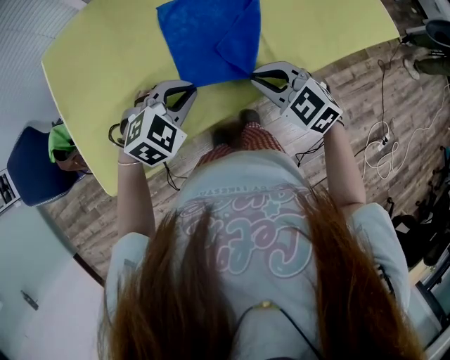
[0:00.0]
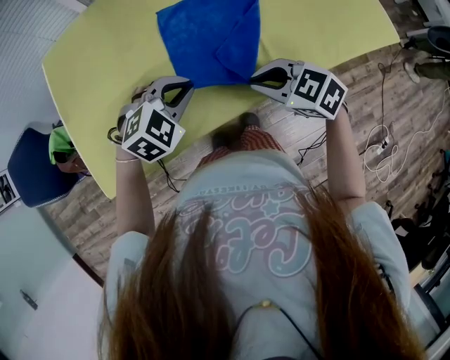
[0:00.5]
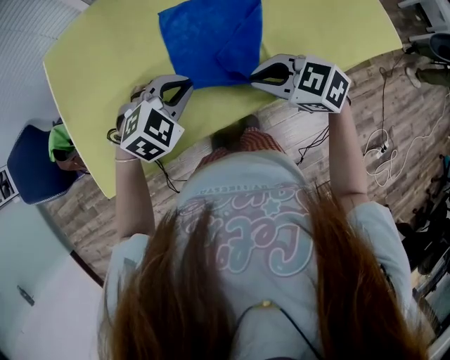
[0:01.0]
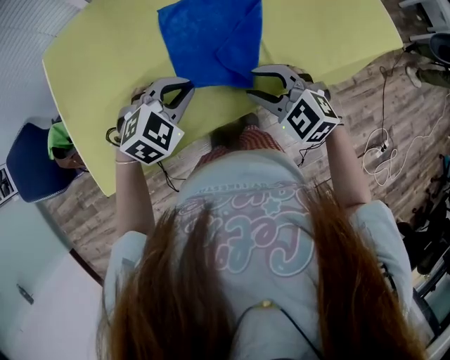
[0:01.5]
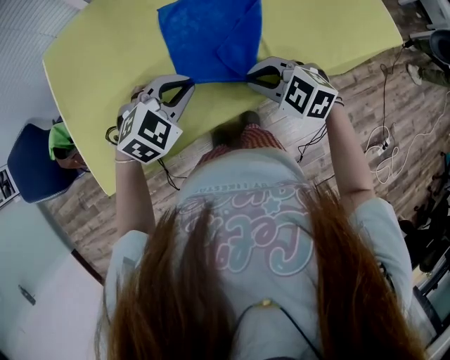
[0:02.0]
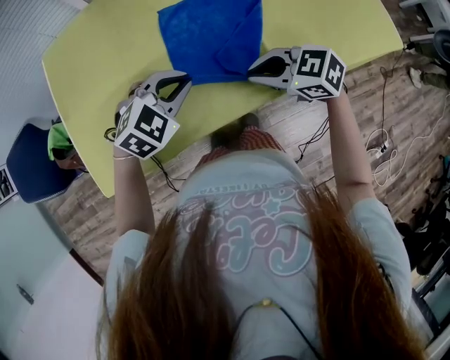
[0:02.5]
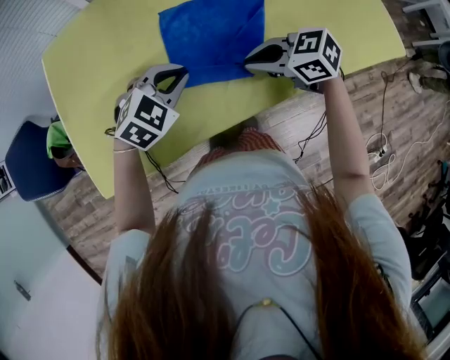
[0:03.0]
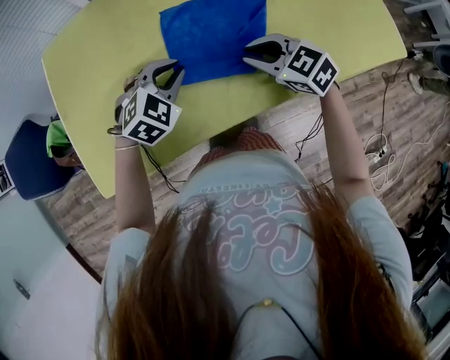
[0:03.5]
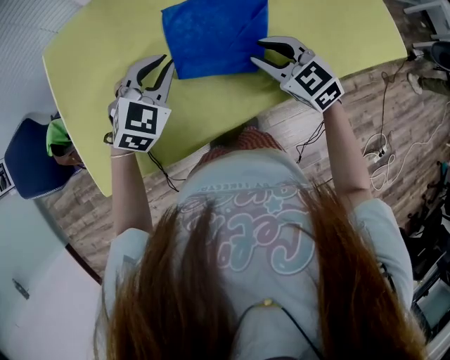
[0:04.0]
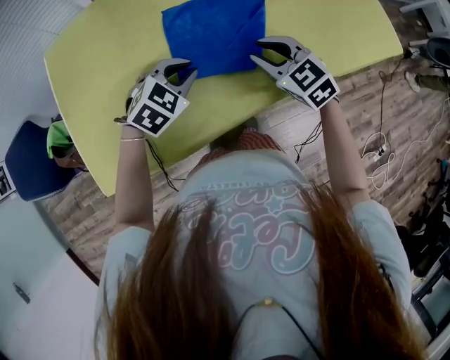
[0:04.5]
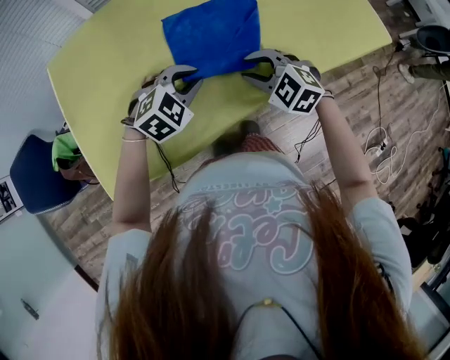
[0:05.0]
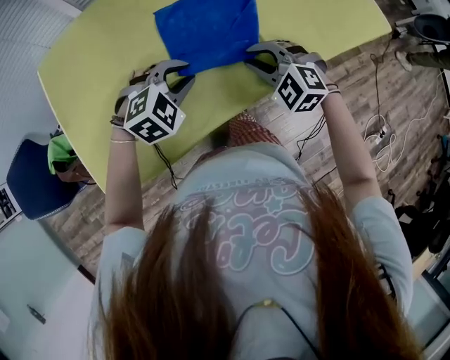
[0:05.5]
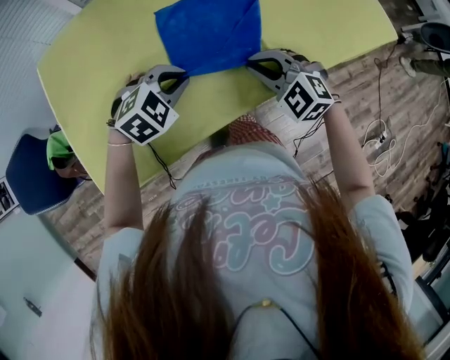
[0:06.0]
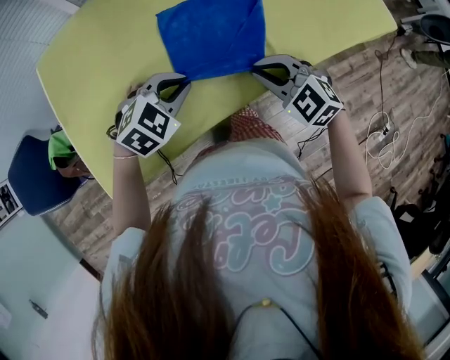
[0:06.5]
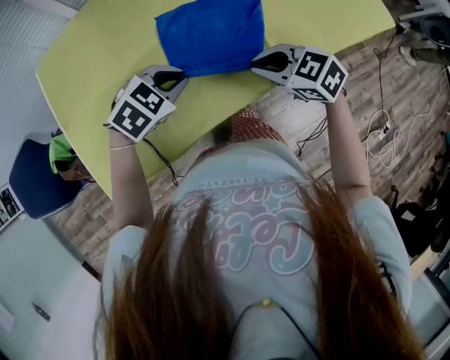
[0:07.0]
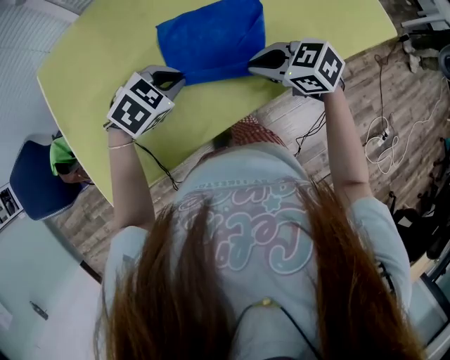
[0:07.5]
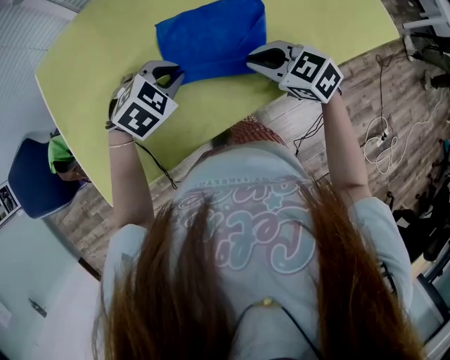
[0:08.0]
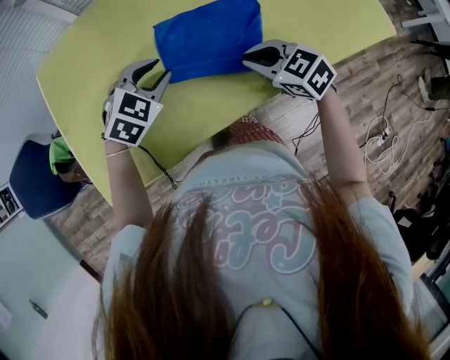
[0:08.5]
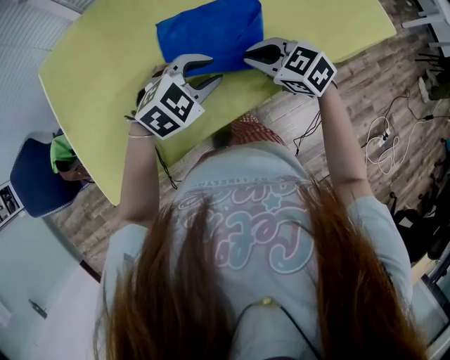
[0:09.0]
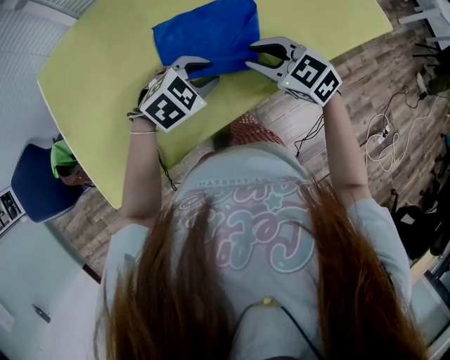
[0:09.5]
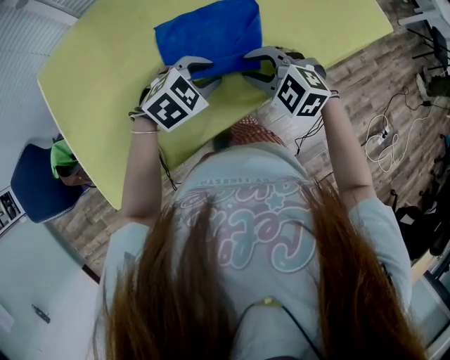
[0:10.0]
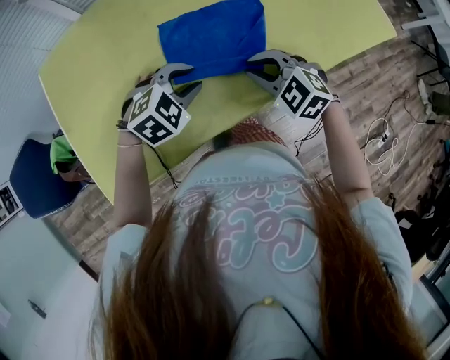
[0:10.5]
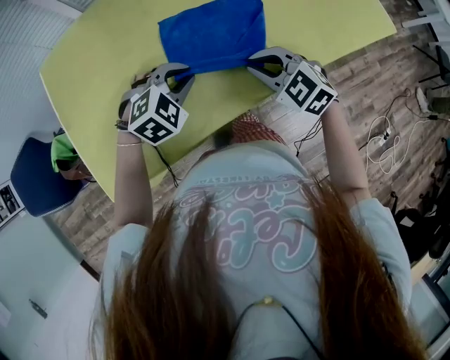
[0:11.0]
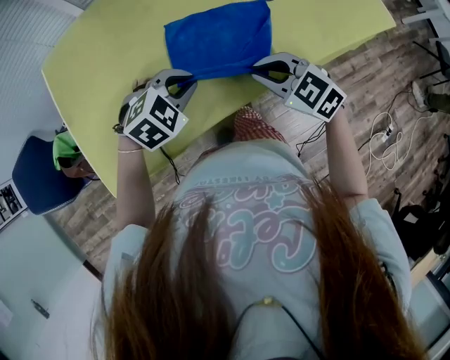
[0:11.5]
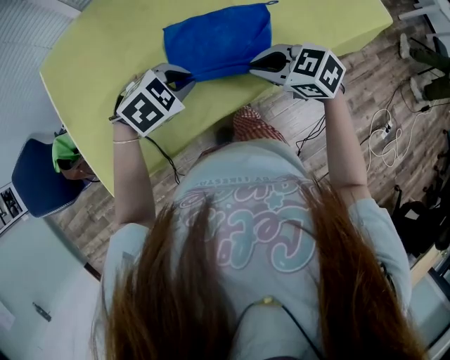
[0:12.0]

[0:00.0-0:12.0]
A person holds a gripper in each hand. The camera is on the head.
0:00.0 to 0:02.0: The right gripper opens and closes again.
0:02.0 to 0:04.0: The right gripper changes place by roughly 10 cm, swivels roughly 20 degrees, and opens its fingers. Meanwhile the left gripper ends up about 10 cm from where it was, and changes its angle by approximately 20 degrees.
0:04.0 to 0:06.0: The right gripper ends up about 5 cm from where it was, changes its angle by some 20 degrees, and closes its fingers, while the left gripper moves downward, some 5 cm, and changes its angle by approximately 30 degrees.
0:06.0 to 0:08.0: The right gripper changes its angle by about 30 degrees.
0:08.0 to 0:10.0: The right gripper turns by roughly 30 degrees, and opens. Meanwhile the left gripper goes roughly 10 cm to the right, and opens its fingers.
0:10.0 to 0:12.0: The right gripper rotates roughly 30 degrees, and closes its fingers, while the left gripper changes place by about 10 cm, and closes its fingers.

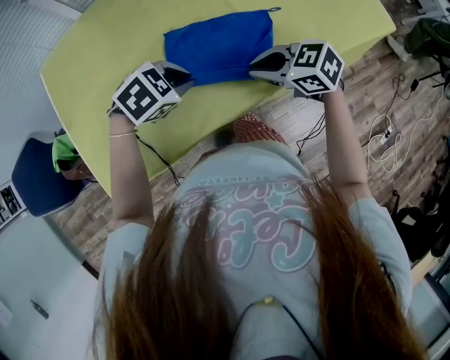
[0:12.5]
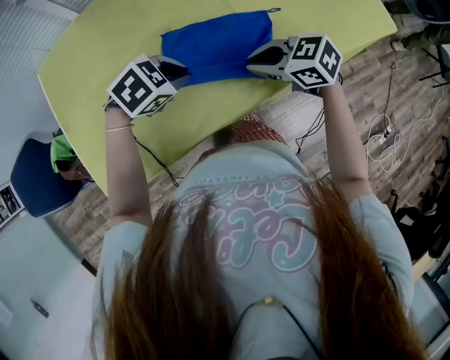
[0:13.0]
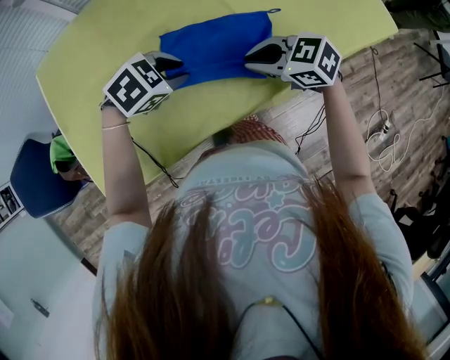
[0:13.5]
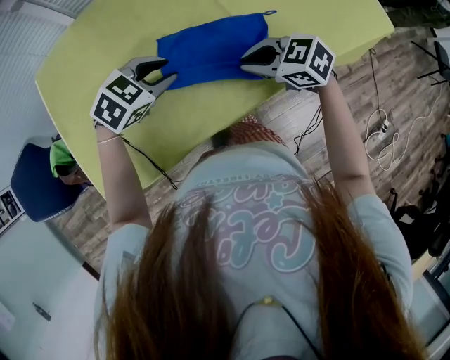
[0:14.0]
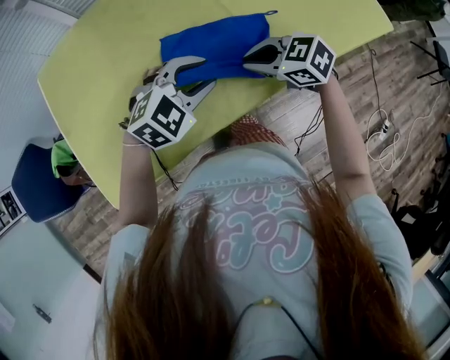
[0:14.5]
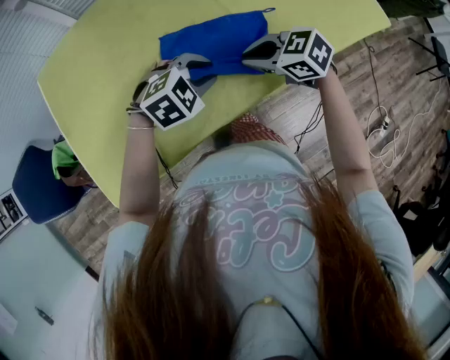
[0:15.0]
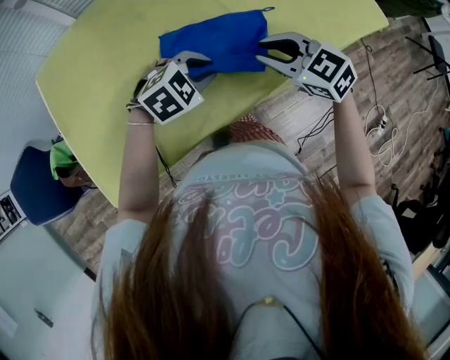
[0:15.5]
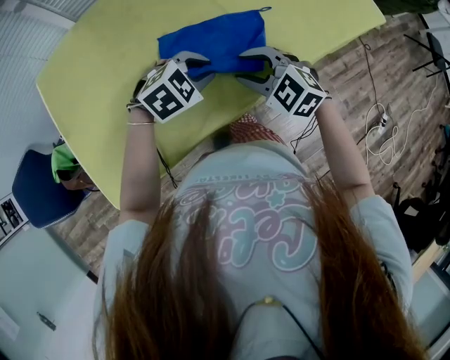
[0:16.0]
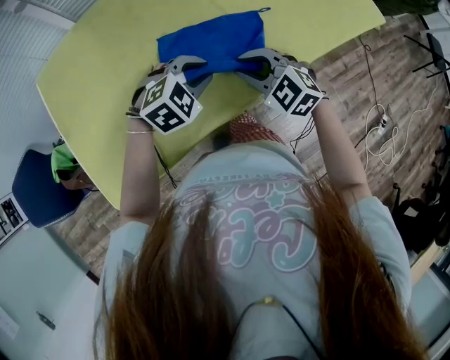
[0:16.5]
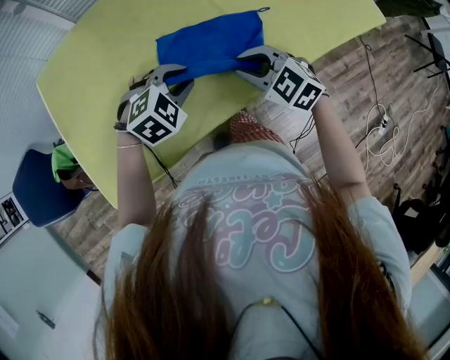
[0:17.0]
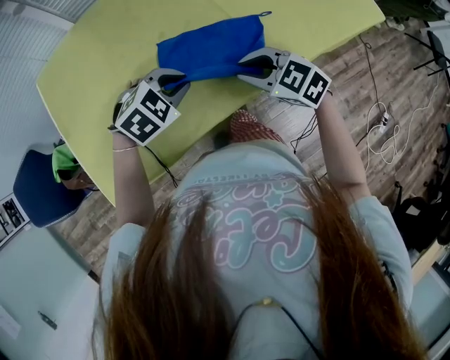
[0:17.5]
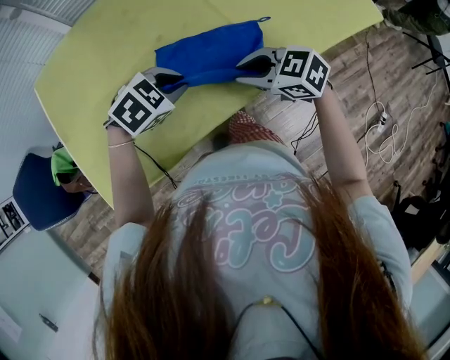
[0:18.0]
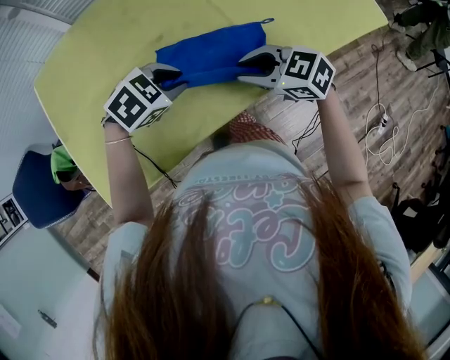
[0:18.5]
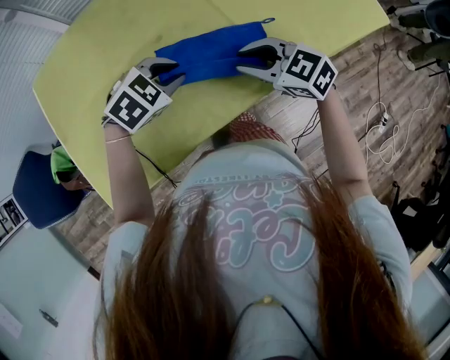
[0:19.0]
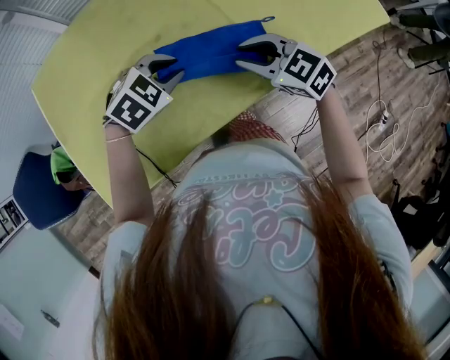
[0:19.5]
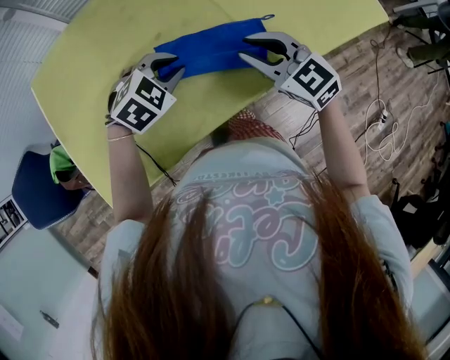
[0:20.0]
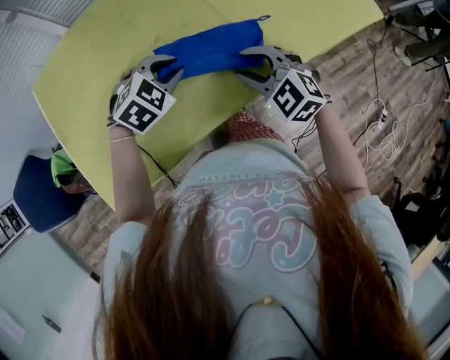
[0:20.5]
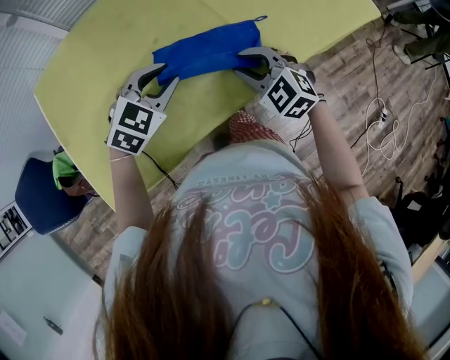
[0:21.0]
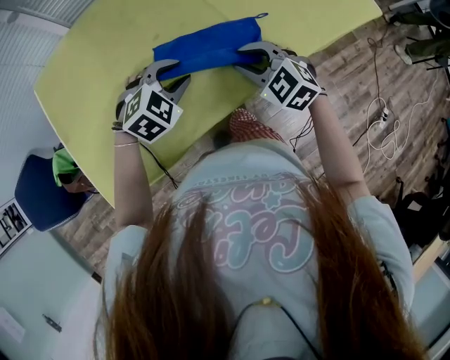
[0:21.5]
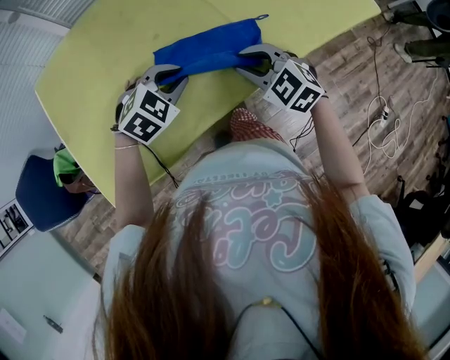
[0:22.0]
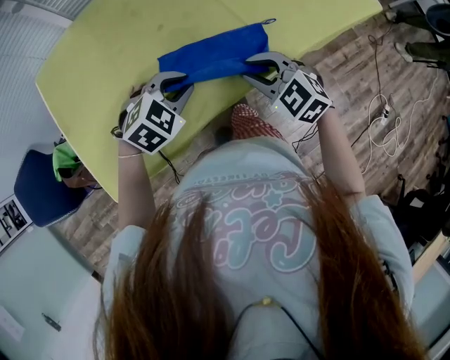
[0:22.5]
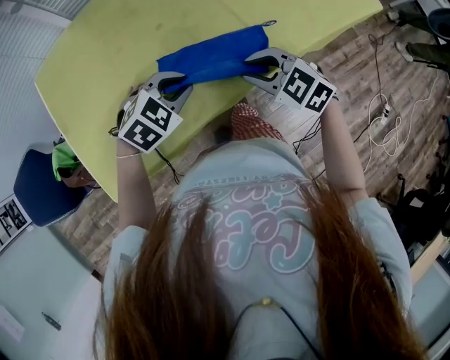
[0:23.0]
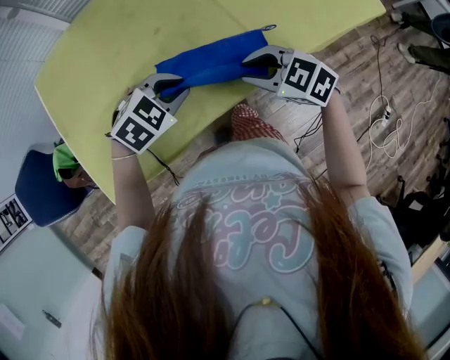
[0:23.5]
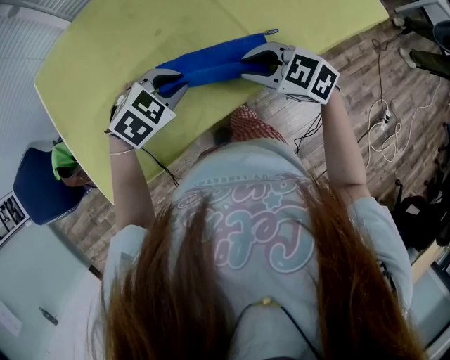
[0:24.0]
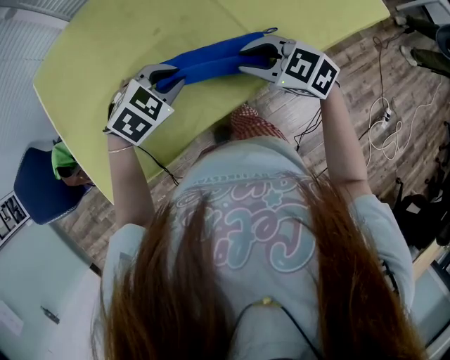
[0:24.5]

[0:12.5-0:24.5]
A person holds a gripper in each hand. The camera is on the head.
0:12.5 to 0:14.5: The left gripper shifts by some 5 cm, turns by some 30 degrees, and opens.
0:14.5 to 0:16.5: The right gripper rotates some 30 degrees.
0:16.5 to 0:18.5: The right gripper swivels about 30 degrees; the left gripper shifts by roughly 5 cm, and turns by about 20 degrees.
0:18.5 to 0:20.5: The right gripper changes its angle by about 30 degrees.
0:20.5 to 0:22.5: The left gripper heads backward, covering roughly 10 cm.
0:22.5 to 0:24.5: The grippers stay close to where they were, moving slightly.

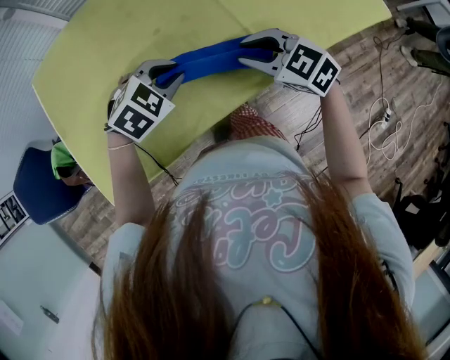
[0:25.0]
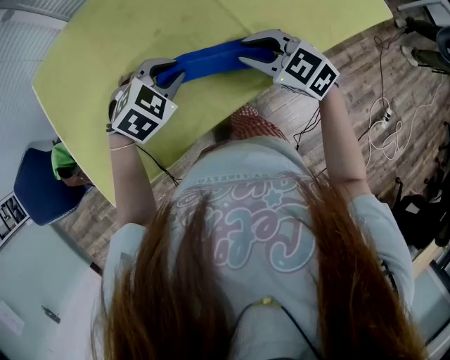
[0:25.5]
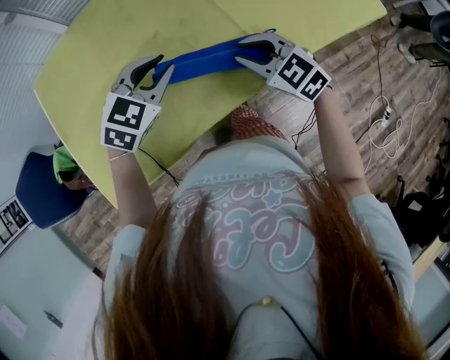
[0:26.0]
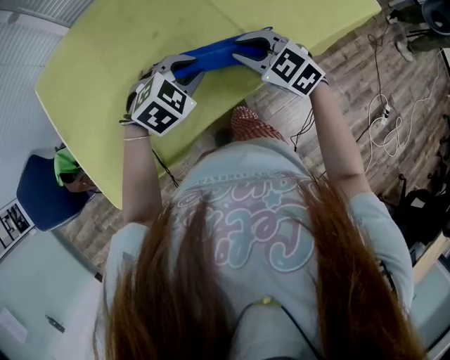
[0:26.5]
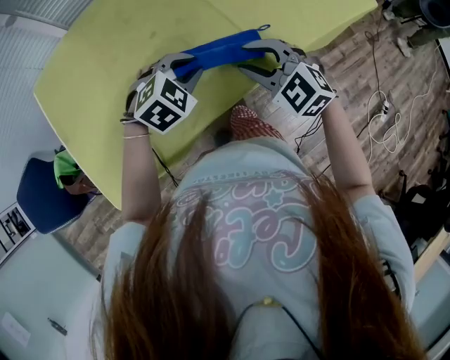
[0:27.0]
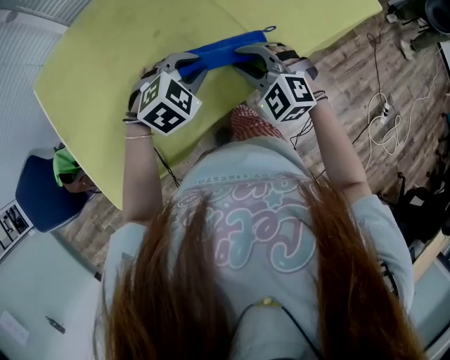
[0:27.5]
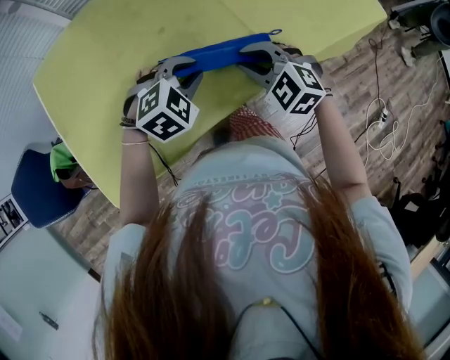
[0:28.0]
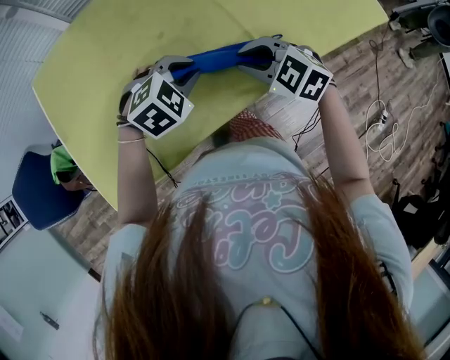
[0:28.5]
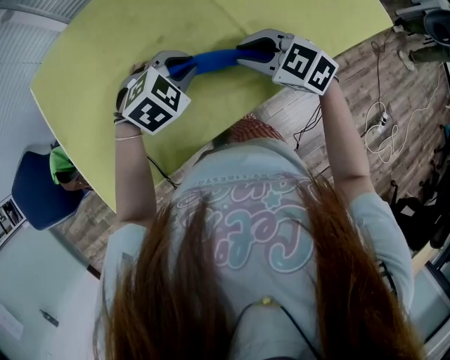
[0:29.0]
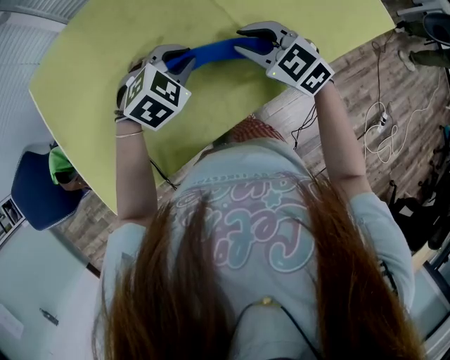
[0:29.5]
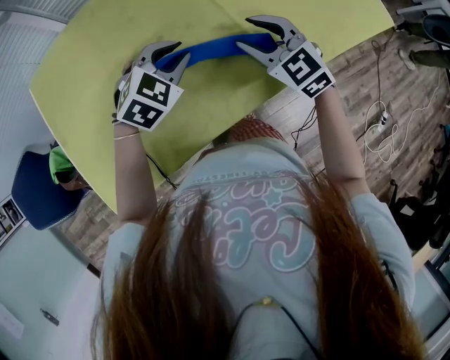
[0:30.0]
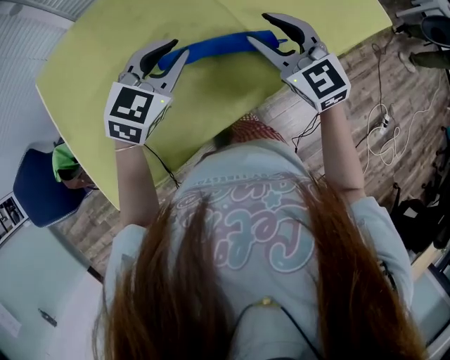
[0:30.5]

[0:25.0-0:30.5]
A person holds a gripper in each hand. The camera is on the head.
0:25.0 to 0:27.0: The right gripper rotates some 20 degrees.
0:27.0 to 0:28.5: The grippers stay close to where they were, moving slightly.
0:28.5 to 0:30.5: The left gripper travels upward by some 10 cm, and swivels roughly 30 degrees, while the right gripper goes approximately 10 cm upward and forward, turns by some 40 degrees, and opens its fingers.
